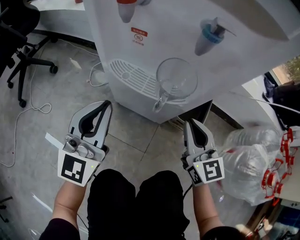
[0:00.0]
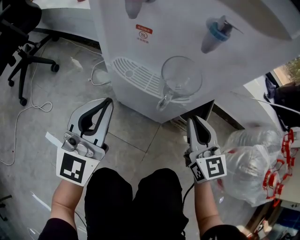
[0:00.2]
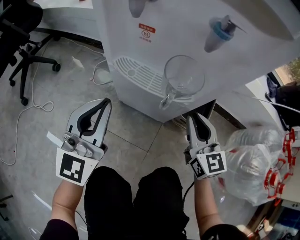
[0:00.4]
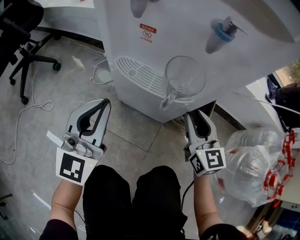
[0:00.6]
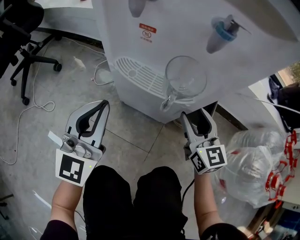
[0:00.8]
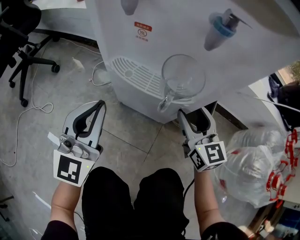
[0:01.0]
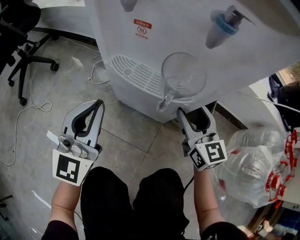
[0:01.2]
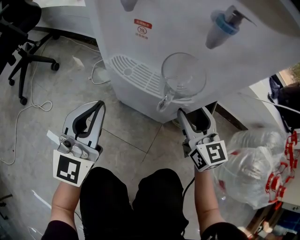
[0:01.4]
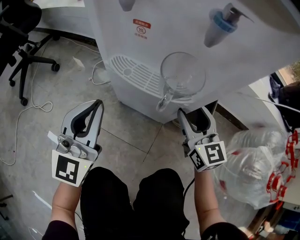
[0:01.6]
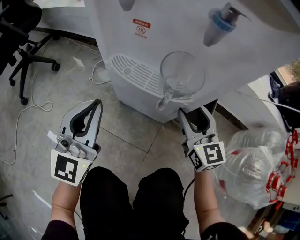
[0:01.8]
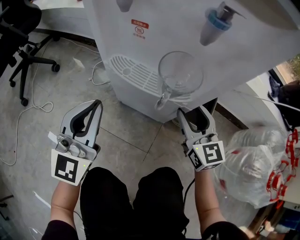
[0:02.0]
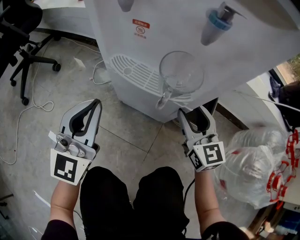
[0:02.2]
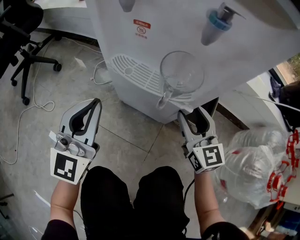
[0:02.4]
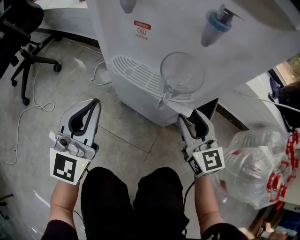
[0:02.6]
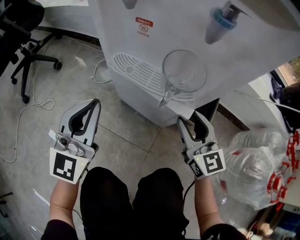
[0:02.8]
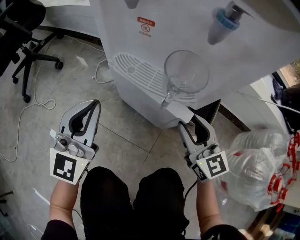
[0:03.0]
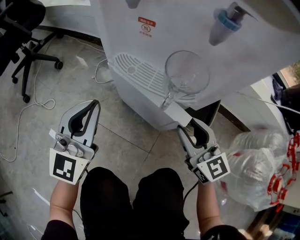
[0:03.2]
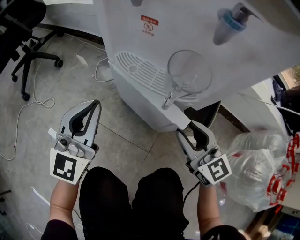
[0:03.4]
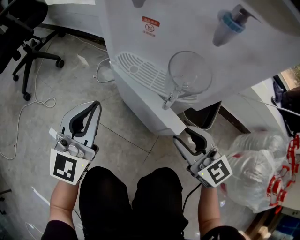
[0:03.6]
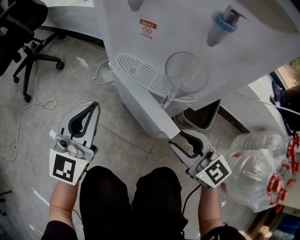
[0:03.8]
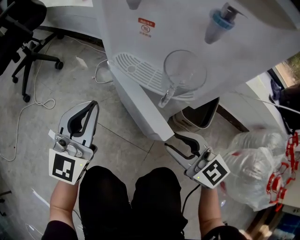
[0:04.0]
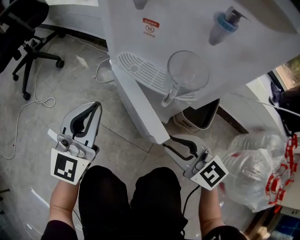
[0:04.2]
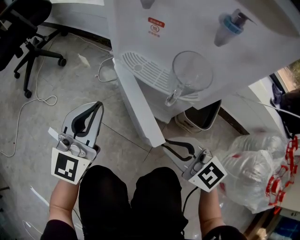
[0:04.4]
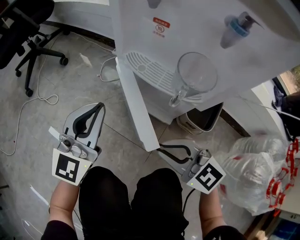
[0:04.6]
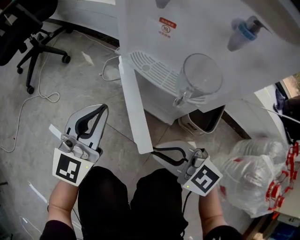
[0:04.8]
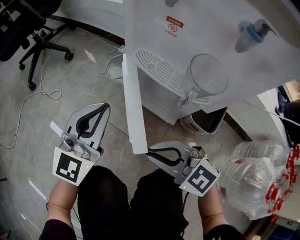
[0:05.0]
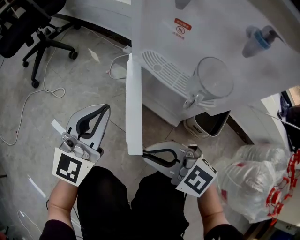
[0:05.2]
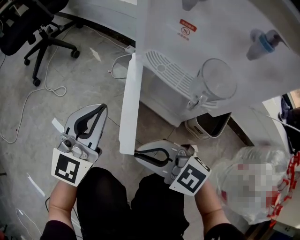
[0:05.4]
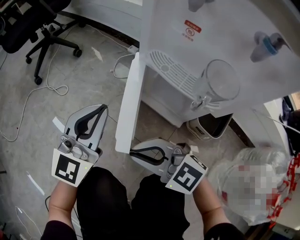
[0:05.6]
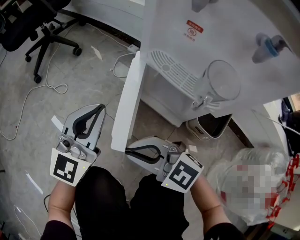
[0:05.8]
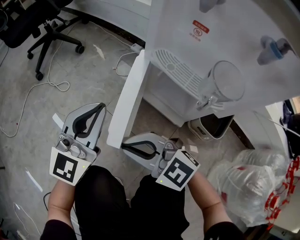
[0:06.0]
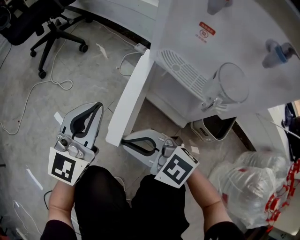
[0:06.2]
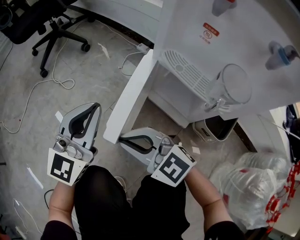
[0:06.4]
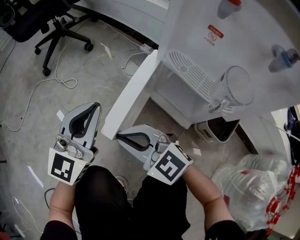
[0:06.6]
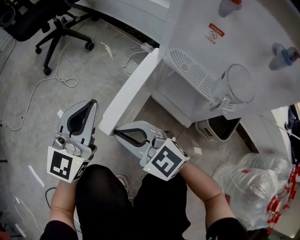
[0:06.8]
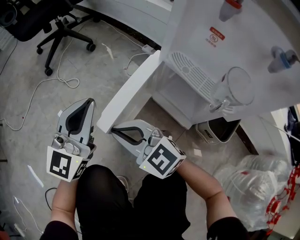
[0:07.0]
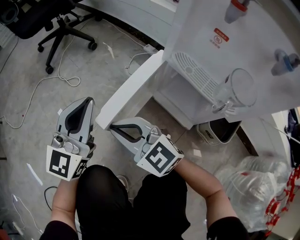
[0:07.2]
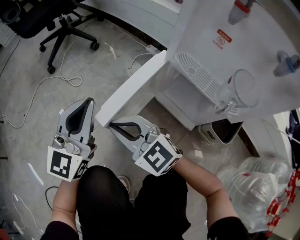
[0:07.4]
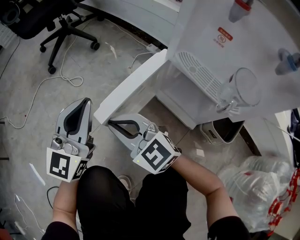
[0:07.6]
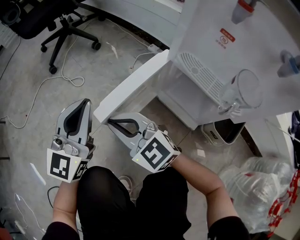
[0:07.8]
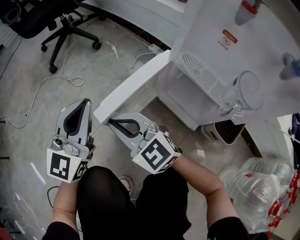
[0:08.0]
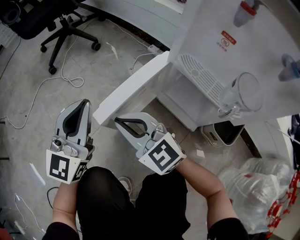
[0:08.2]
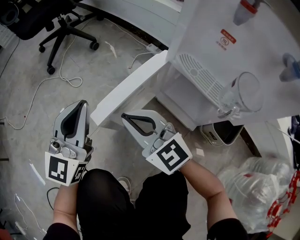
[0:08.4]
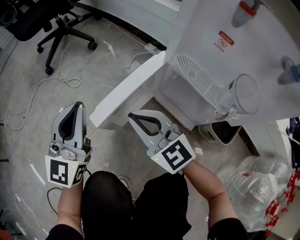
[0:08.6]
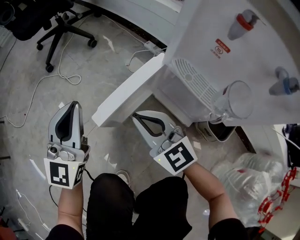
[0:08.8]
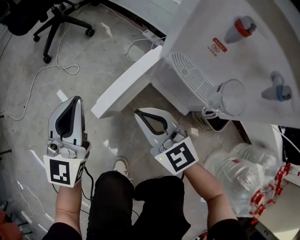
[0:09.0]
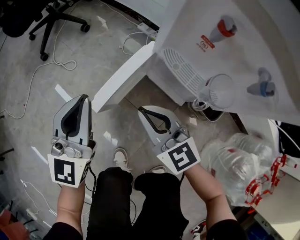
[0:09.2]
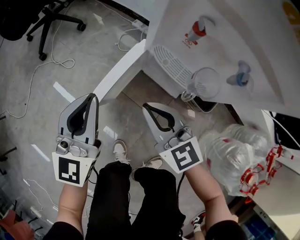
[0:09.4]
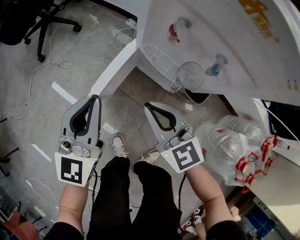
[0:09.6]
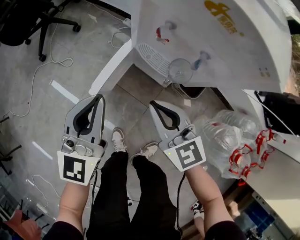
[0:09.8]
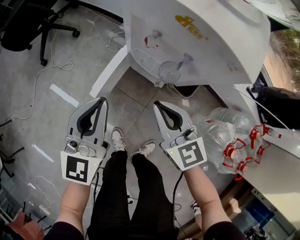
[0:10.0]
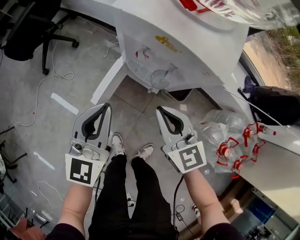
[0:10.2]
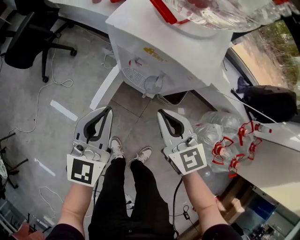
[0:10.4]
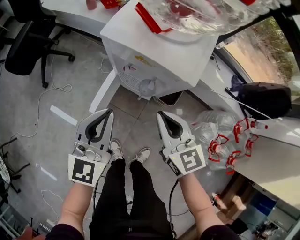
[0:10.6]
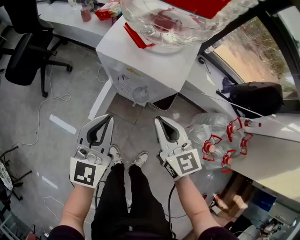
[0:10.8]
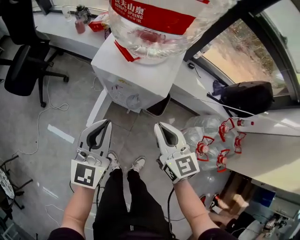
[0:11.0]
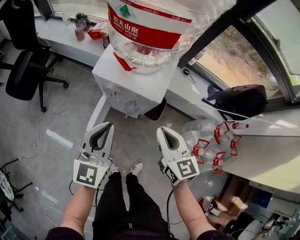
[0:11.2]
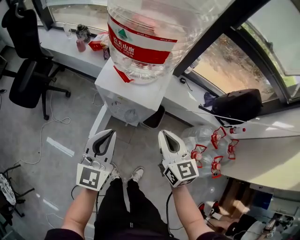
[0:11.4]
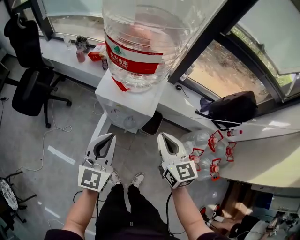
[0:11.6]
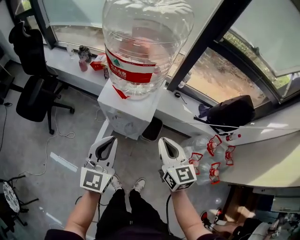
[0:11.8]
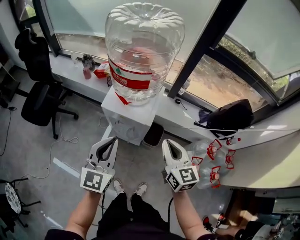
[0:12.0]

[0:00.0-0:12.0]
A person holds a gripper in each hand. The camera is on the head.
0:00.0 to 0:01.6: The right gripper ends up approximately 5 cm from where it was, and opens up.
0:01.6 to 0:03.0: There are only small adjustments of the grippers.
0:03.0 to 0:04.4: The right gripper is displaced to the left and backward by roughly 10 cm, turns by some 30 degrees, and closes up.
0:04.4 to 0:06.0: The left gripper goes roughly 5 cm to the left. Meanwhile the right gripper is displaced to the left by about 15 cm, and rotates roughly 30 degrees.
0:06.0 to 0:07.6: The right gripper travels forward and to the left by roughly 10 cm. Meanwhile the left gripper goes about 10 cm to the left.
0:07.6 to 0:09.0: The right gripper is displaced to the right by approximately 10 cm; the left gripper goes roughly 5 cm upward.
0:09.0 to 0:10.4: Both grippers travel together upward and to the right, roughly 35 cm. The right gripper changes its angle by roughly 40 degrees; the left gripper swivels some 20 degrees.
0:10.4 to 0:12.0: The right gripper heads upward and to the right, covering some 30 cm, and swivels roughly 20 degrees, while the left gripper goes approximately 25 cm upward.

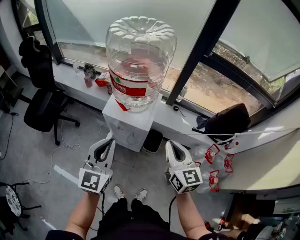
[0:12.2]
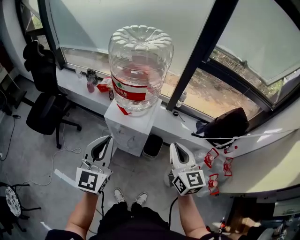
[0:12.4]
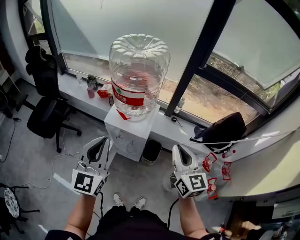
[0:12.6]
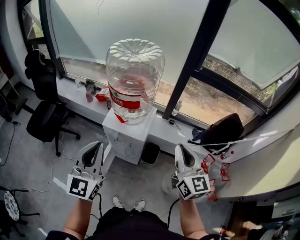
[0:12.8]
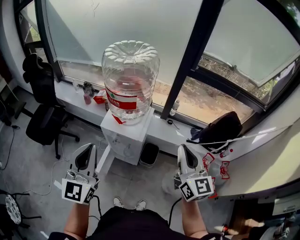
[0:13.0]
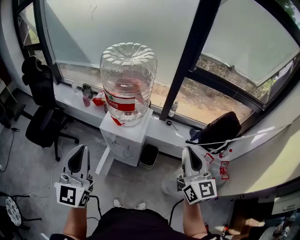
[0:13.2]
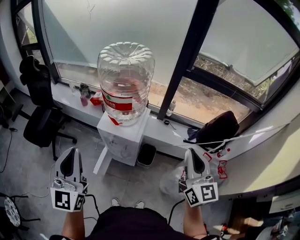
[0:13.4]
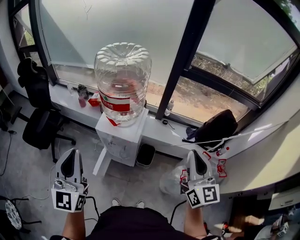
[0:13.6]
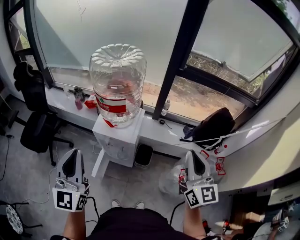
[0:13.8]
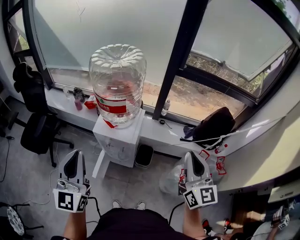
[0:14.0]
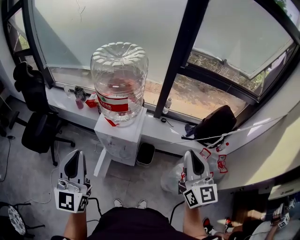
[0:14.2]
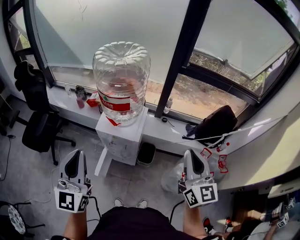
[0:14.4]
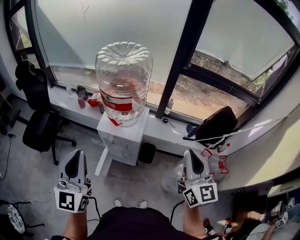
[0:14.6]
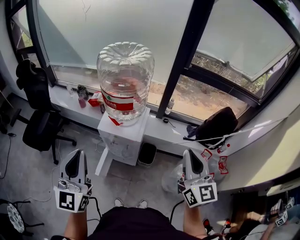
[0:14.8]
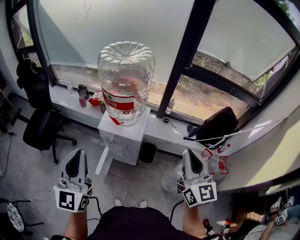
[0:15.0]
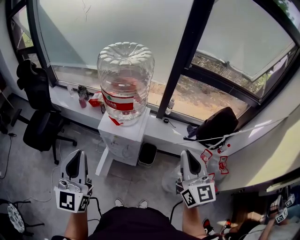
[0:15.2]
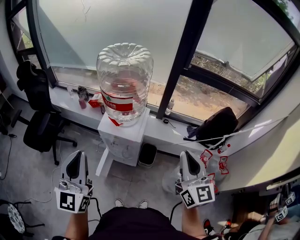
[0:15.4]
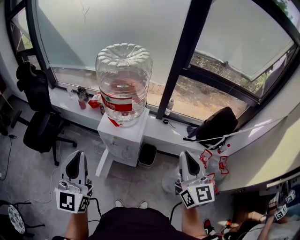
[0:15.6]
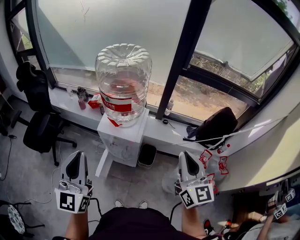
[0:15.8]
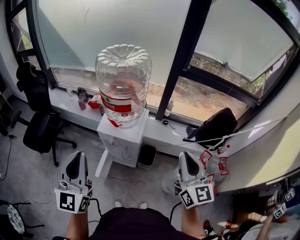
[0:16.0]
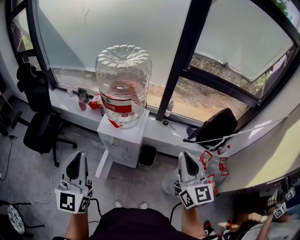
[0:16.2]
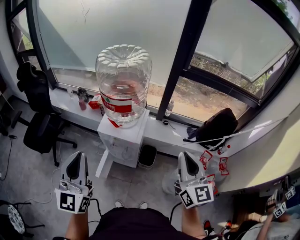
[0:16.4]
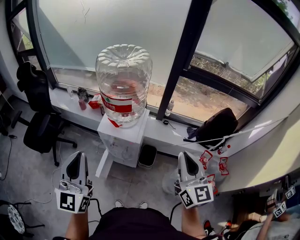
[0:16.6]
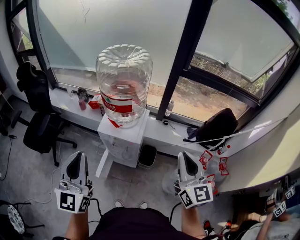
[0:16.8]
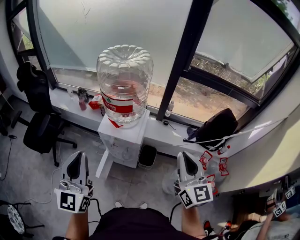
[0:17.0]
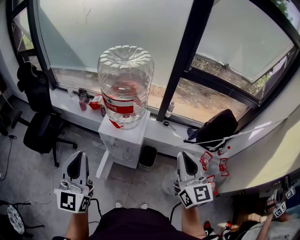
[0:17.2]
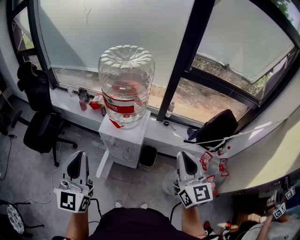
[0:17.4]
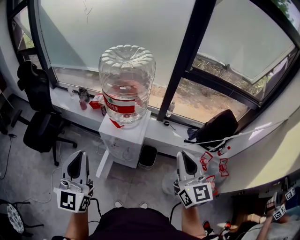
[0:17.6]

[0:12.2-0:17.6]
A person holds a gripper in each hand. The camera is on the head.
0:12.2 to 0:13.6: The left gripper travels upward, backward and to the left by about 15 cm, while the right gripper goes roughly 20 cm upward, to the right and backward, and turns by some 20 degrees.
0:13.6 to 0:15.0: There are only small adjustments of the grippers.
0:15.0 to 0:16.2: The two grippers keep their place.
0:16.2 to 0:17.6: There are only small adjustments of the grippers.

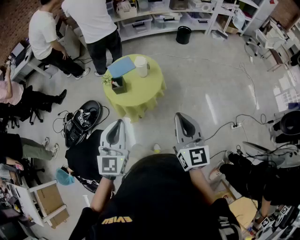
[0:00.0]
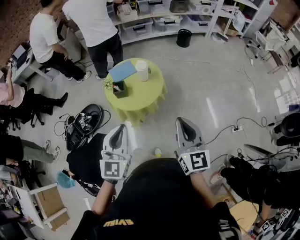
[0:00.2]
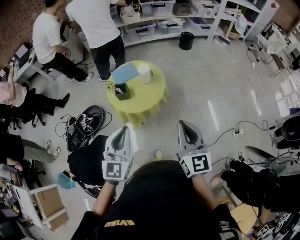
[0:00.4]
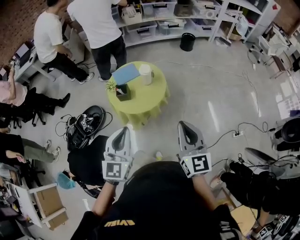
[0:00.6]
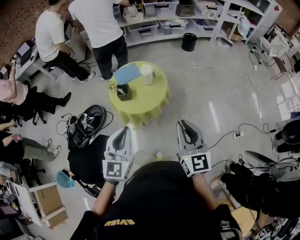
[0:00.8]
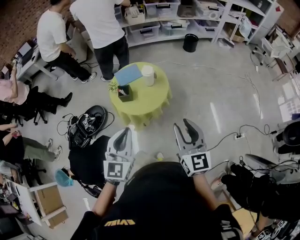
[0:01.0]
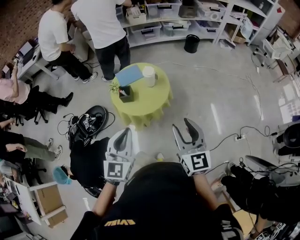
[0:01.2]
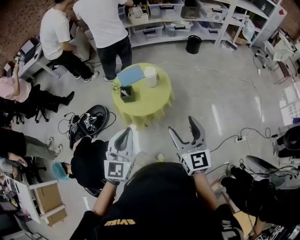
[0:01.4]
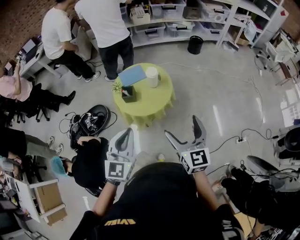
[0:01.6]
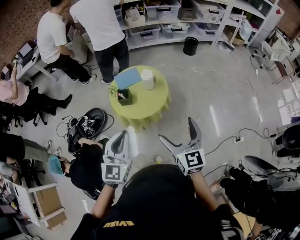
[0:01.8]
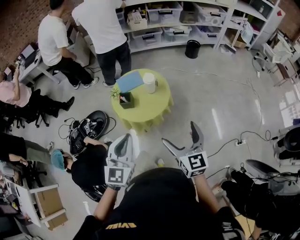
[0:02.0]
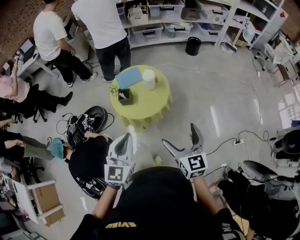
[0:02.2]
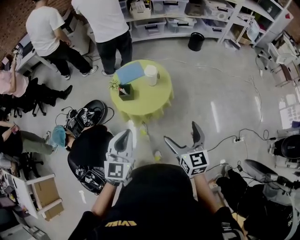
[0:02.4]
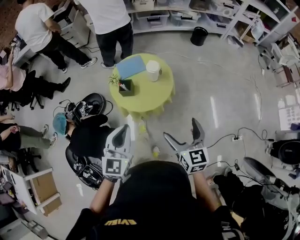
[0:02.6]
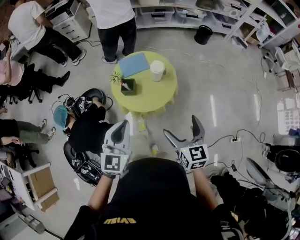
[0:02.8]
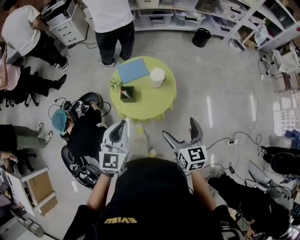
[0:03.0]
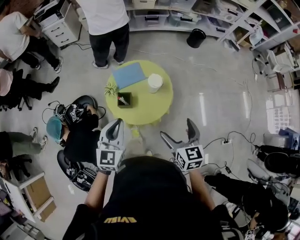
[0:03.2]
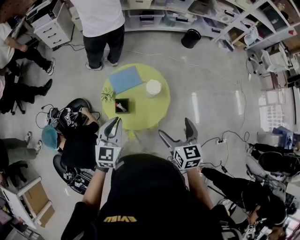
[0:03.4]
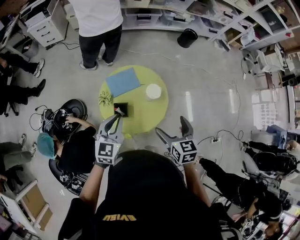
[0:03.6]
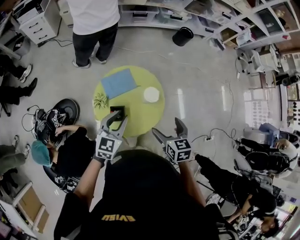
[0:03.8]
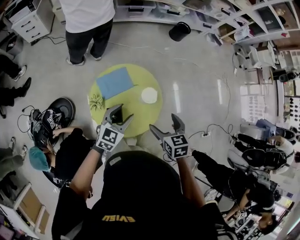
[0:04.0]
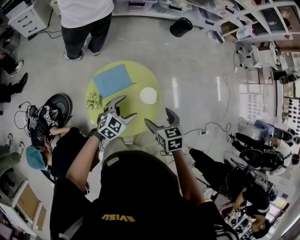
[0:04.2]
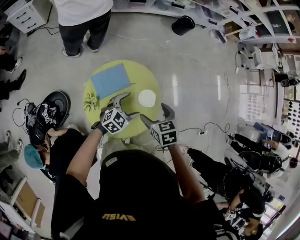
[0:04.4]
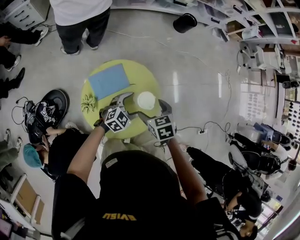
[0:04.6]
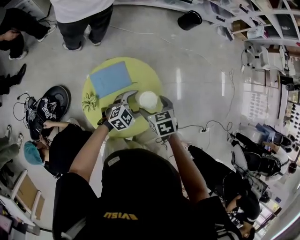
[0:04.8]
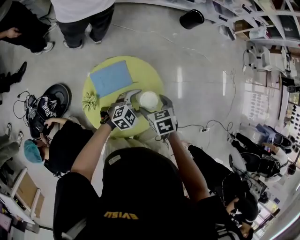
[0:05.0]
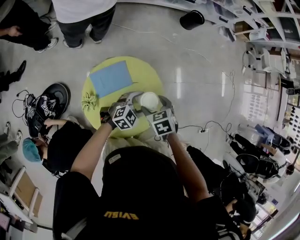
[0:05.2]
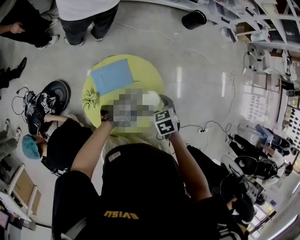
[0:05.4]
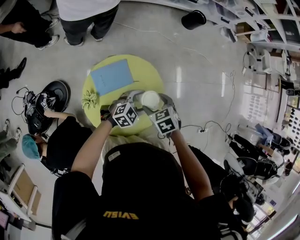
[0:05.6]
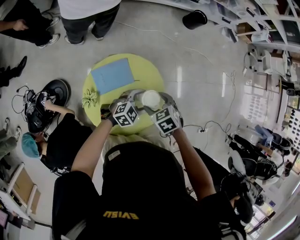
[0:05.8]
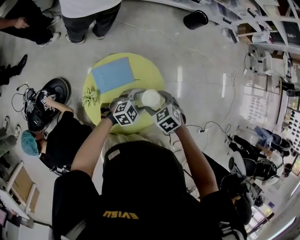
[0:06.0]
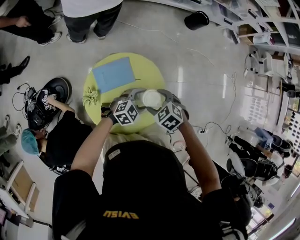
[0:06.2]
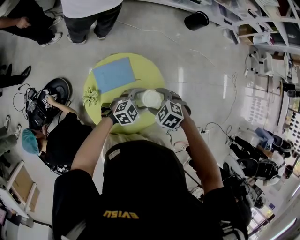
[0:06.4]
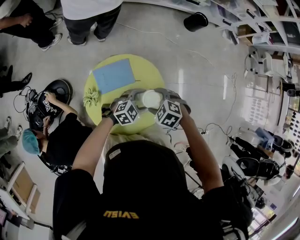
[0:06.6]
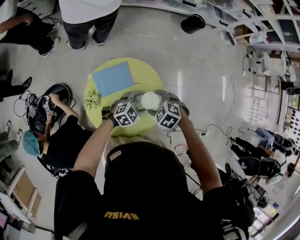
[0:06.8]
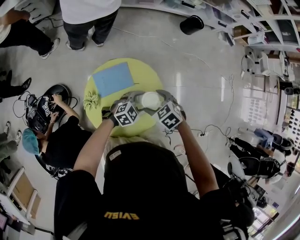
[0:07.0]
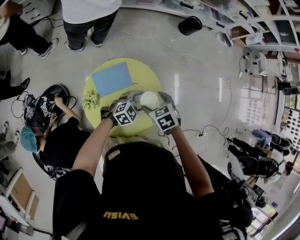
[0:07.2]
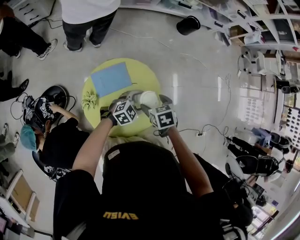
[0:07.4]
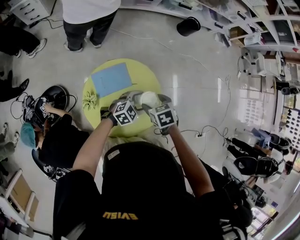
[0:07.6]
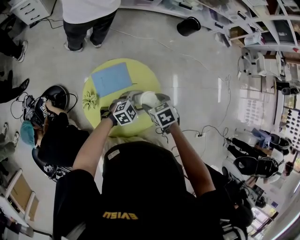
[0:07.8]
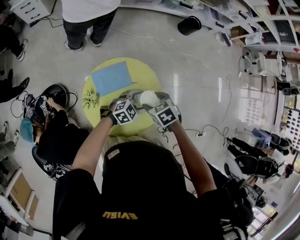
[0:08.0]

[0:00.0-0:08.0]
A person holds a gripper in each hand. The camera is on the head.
0:00.0 to 0:01.6: The right gripper ends up roughly 5 cm from where it was, and opens up.
0:01.6 to 0:03.2: Both grippers travel together forward, roughly 20 cm.
0:03.2 to 0:04.8: The right gripper is displaced forward, downward and to the left by approximately 35 cm, and angles its fingers downward, by some 30 degrees; the left gripper heads forward and downward, covering some 35 cm, changes its angle by some 50 degrees, and opens.
0:04.8 to 0:06.4: The right gripper rotates around the line of its fingers by roughly 40 degrees, counterclockwise from behind.
0:06.4 to 0:08.0: The right gripper changes its angle by roughly 30 degrees.
